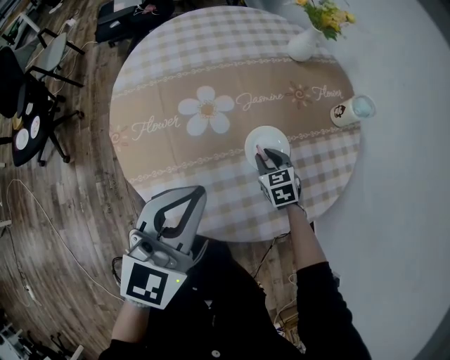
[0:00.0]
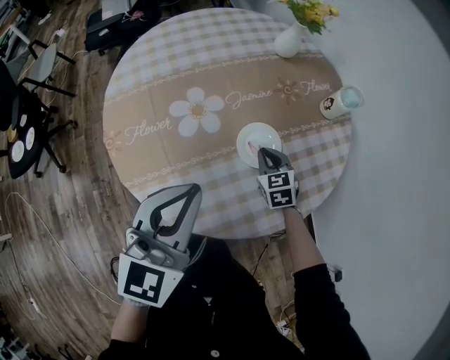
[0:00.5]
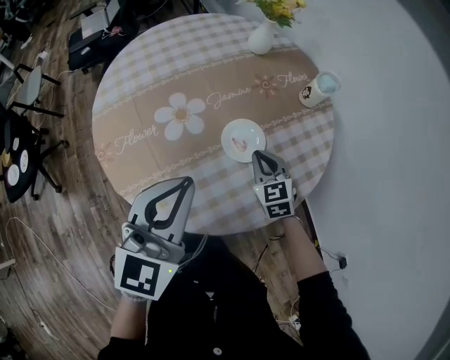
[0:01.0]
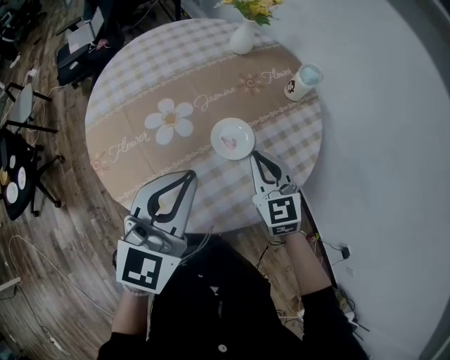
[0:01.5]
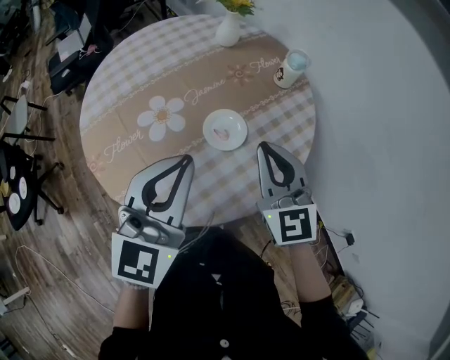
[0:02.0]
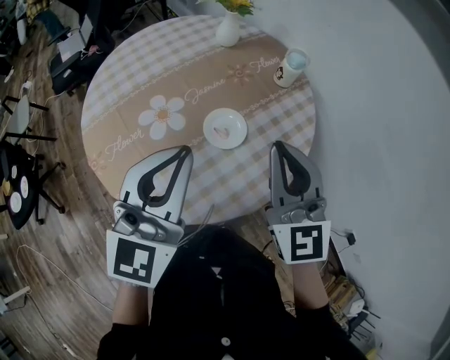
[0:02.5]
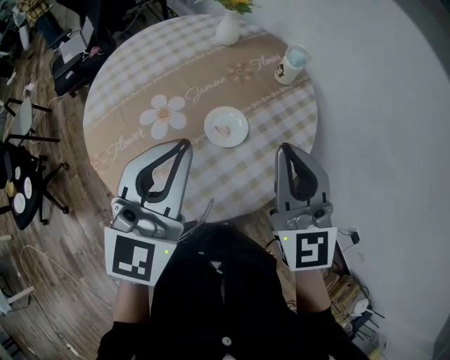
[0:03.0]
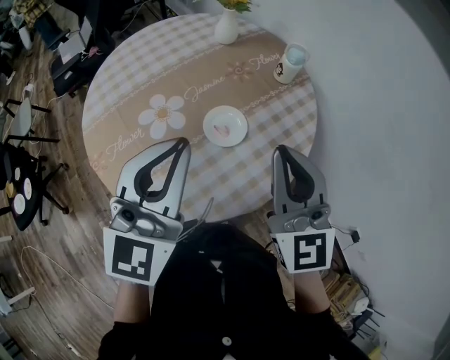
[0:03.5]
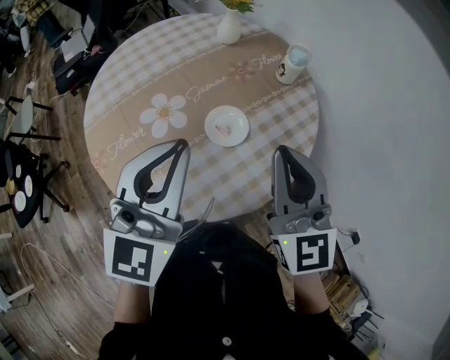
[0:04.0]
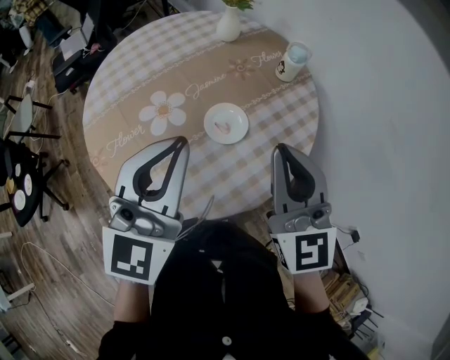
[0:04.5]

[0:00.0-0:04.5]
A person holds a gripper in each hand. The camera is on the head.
0:00.0 to 0:02.0: The left gripper travels upward and to the right by some 10 cm, while the right gripper goes approximately 30 cm upward, and tips its fingers upward by roughly 40 degrees.
0:02.0 to 0:04.5: The right gripper goes approximately 5 cm upward.

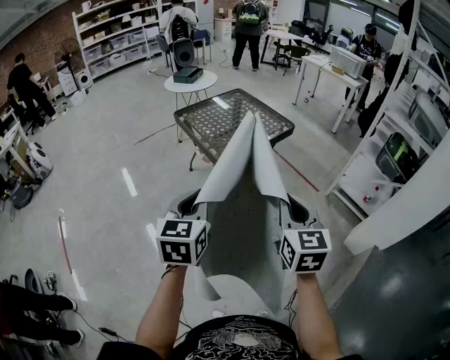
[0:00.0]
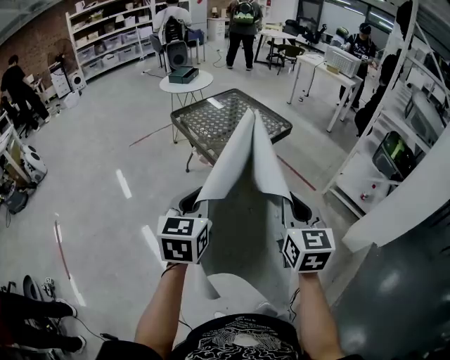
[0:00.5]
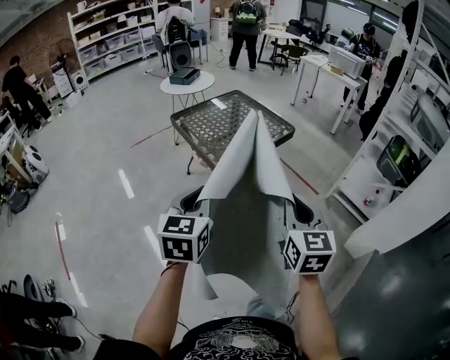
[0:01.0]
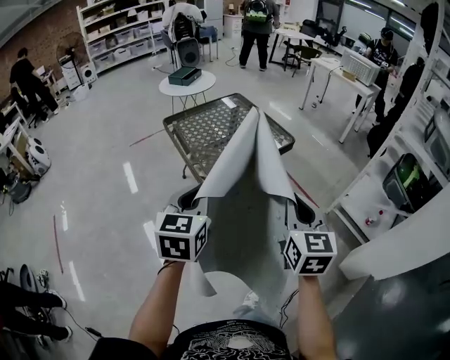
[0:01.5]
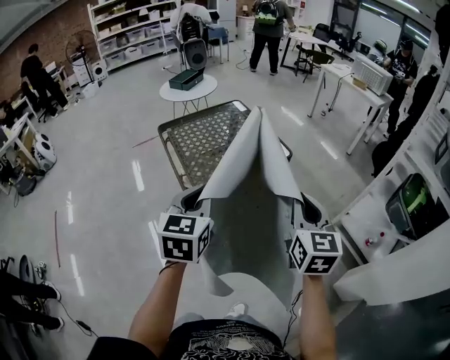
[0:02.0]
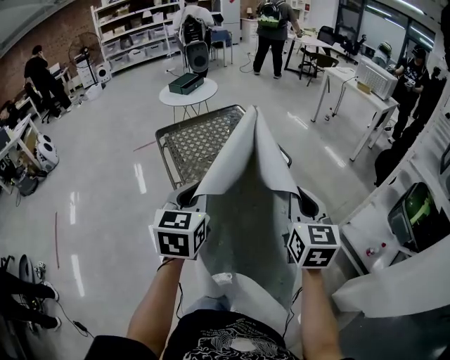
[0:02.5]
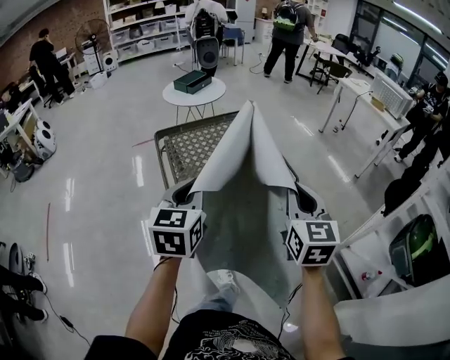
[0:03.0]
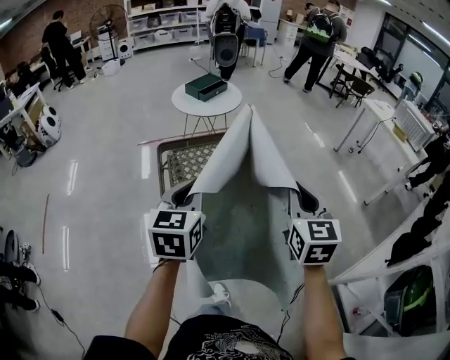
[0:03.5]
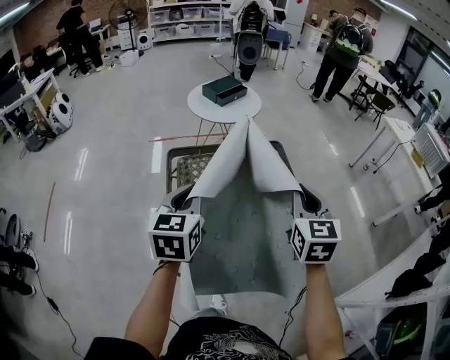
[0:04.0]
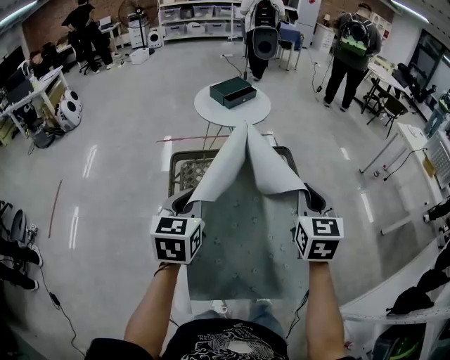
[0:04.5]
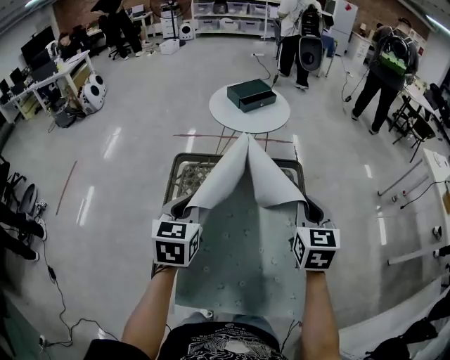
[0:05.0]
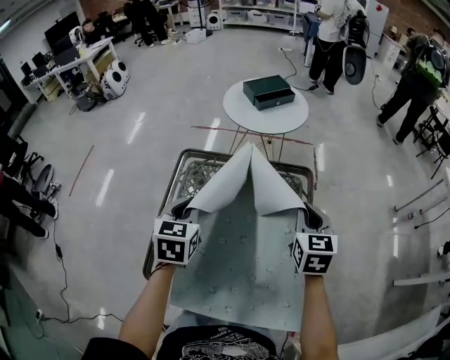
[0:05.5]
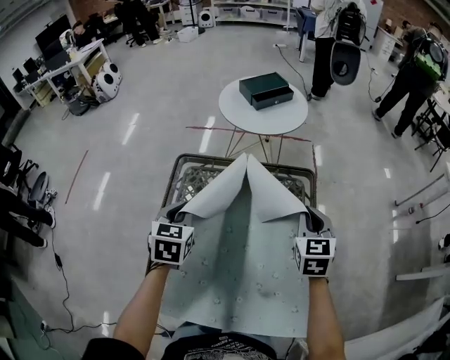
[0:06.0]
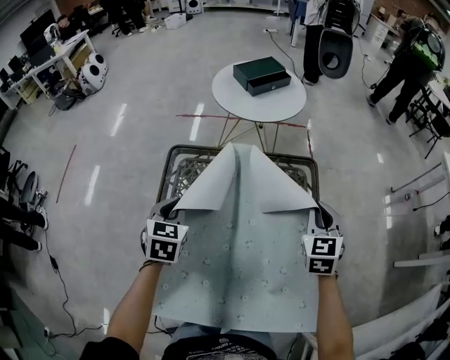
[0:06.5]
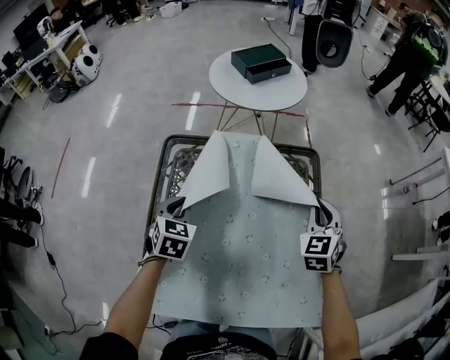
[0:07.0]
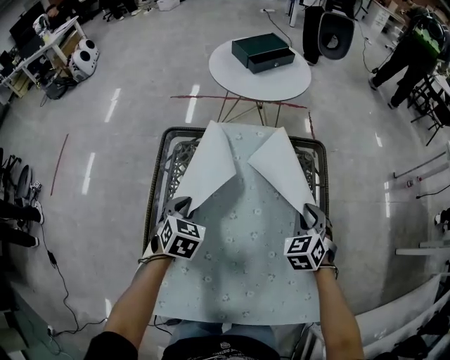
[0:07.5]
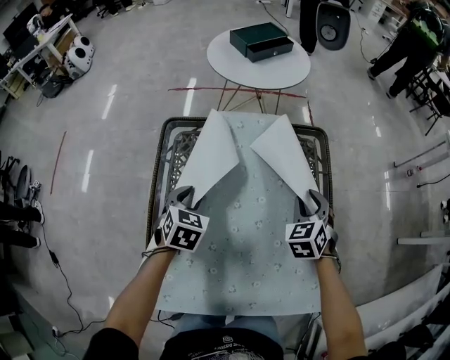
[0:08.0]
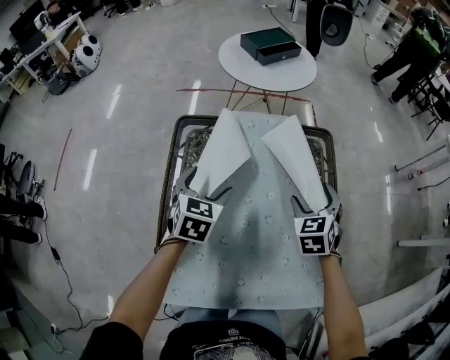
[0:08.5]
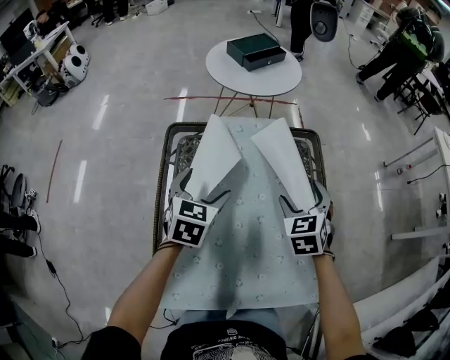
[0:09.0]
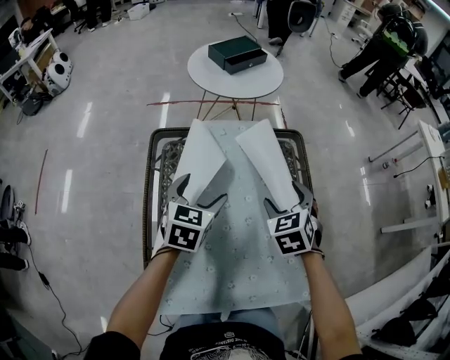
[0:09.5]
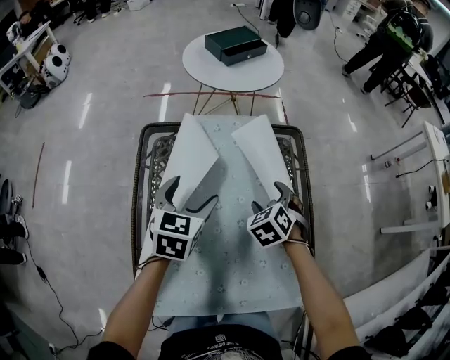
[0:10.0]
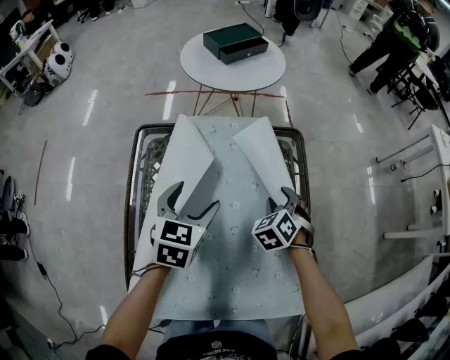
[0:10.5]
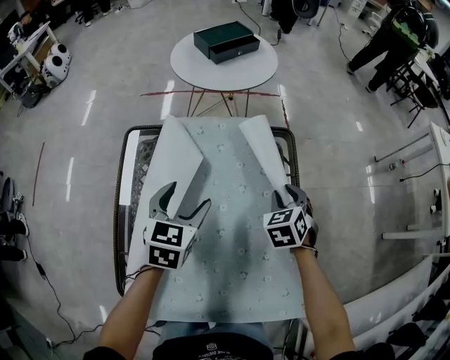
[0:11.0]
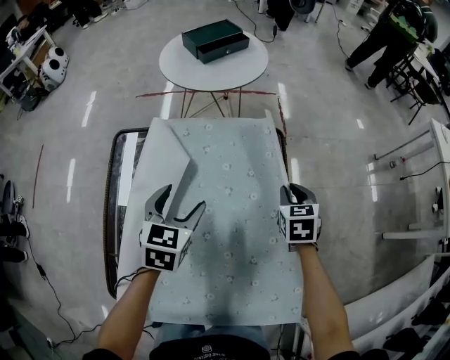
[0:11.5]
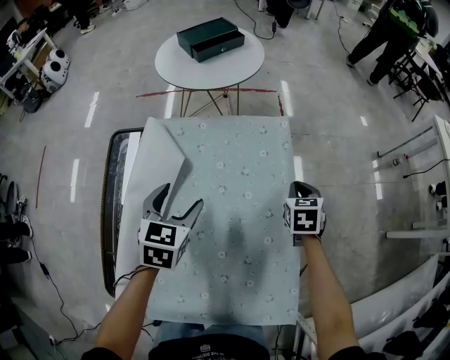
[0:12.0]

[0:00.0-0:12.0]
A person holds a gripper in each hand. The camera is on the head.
0:00.0 to 0:02.0: Both grippers move forward and to the right, some 35 cm.
0:02.0 to 0:04.0: Both grippers are carried forward, roughly 50 cm. The right gripper turns by approximately 20 degrees. The left gripper changes its angle by about 20 degrees.
0:04.0 to 0:06.0: The two grippers go some 25 cm forward and downward. The left gripper rotates approximately 30 degrees.
0:06.0 to 0:08.0: Both grippers move downward, roughly 15 cm. The right gripper changes its angle by approximately 30 degrees.
0:08.0 to 0:10.0: The right gripper travels to the left by roughly 5 cm, moves some 5 cm upward and comes back, and opens its fingers. The left gripper is displaced upward and to the right by approximately 10 cm, and opens.
0:10.0 to 0:12.0: The right gripper moves to the right and forward, about 25 cm, changes its angle by roughly 30 degrees, and closes. Meanwhile the left gripper shifts approximately 10 cm to the right.

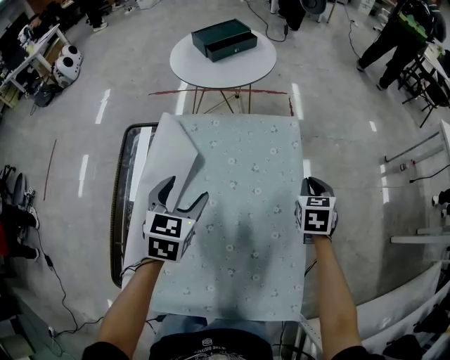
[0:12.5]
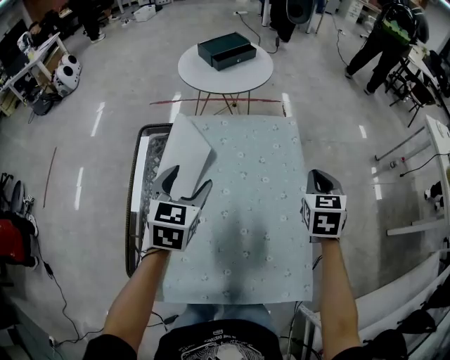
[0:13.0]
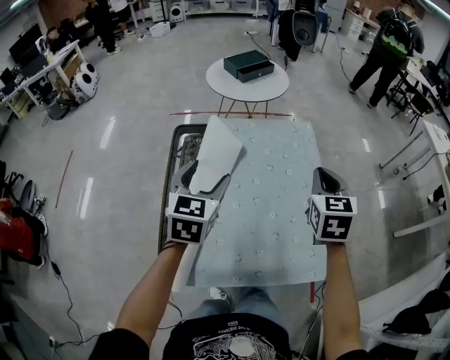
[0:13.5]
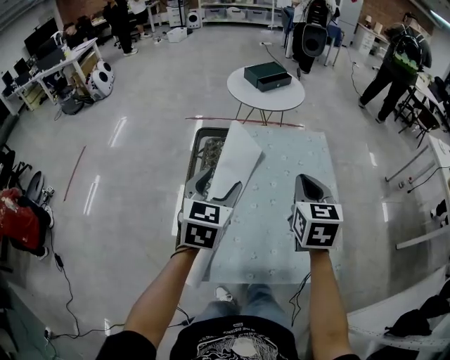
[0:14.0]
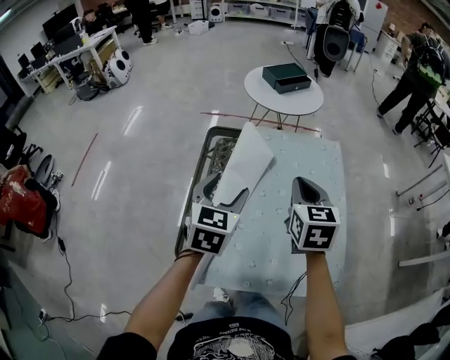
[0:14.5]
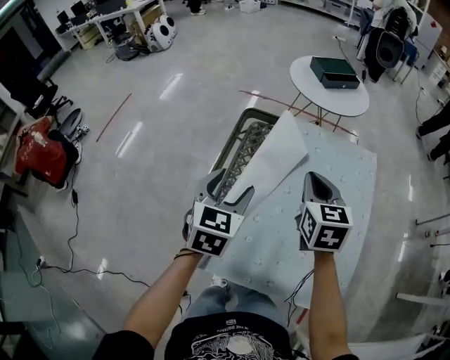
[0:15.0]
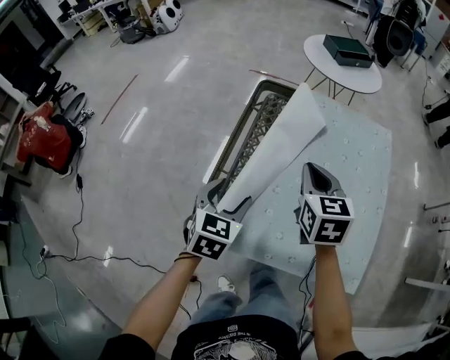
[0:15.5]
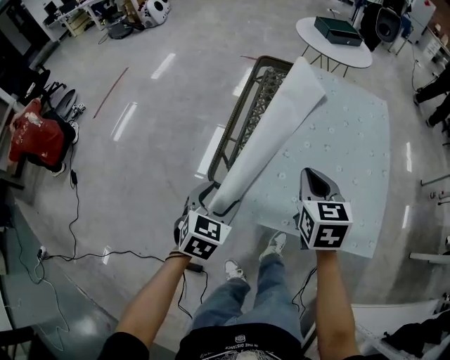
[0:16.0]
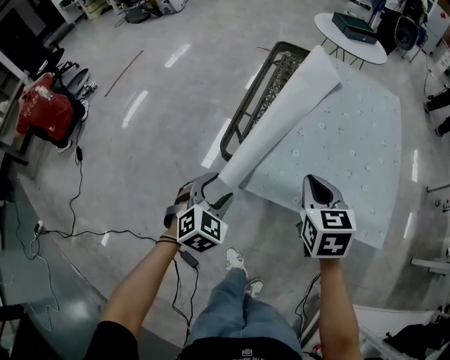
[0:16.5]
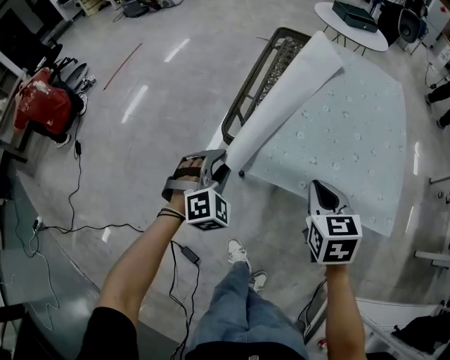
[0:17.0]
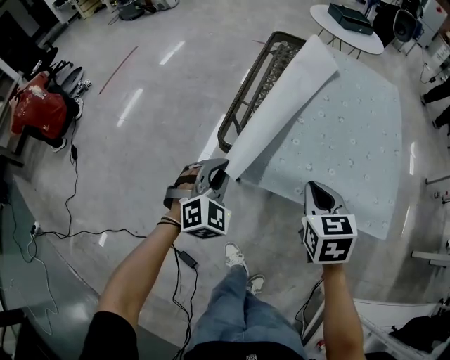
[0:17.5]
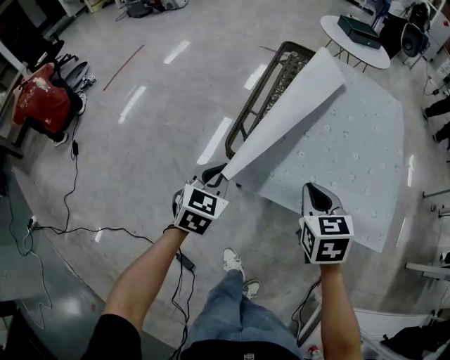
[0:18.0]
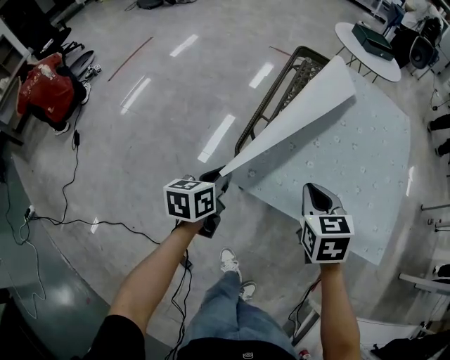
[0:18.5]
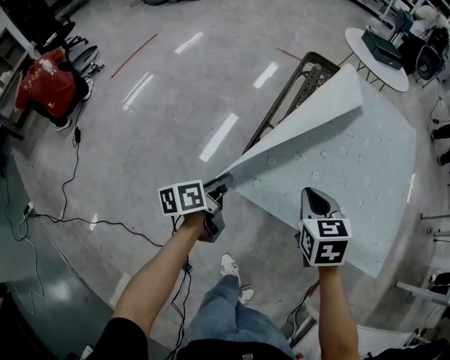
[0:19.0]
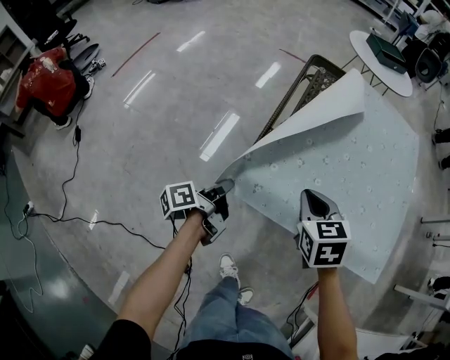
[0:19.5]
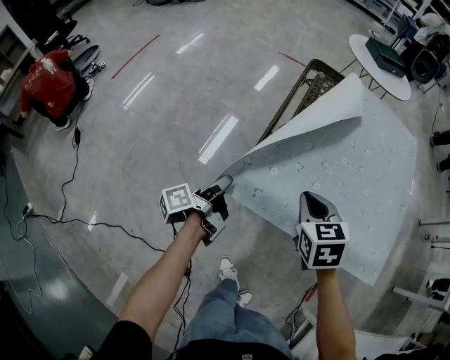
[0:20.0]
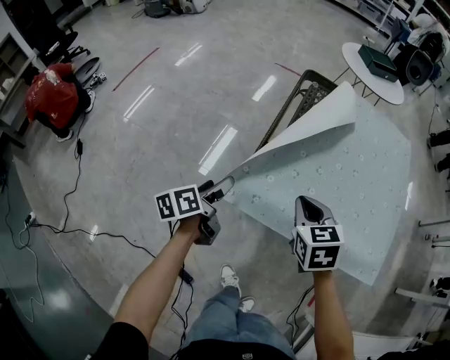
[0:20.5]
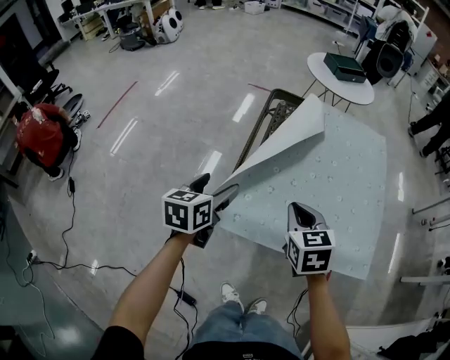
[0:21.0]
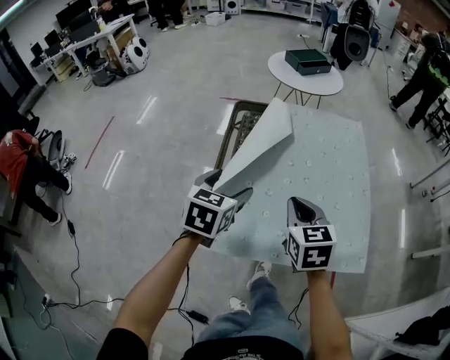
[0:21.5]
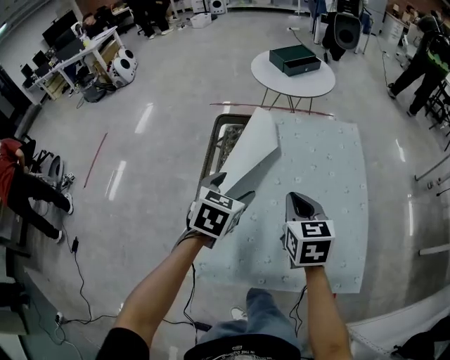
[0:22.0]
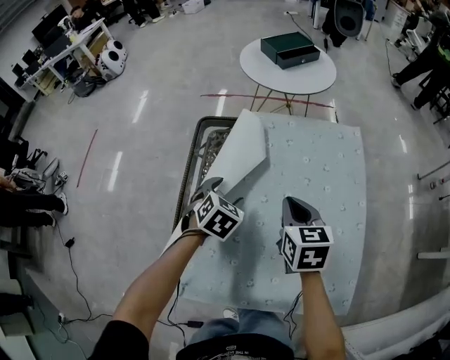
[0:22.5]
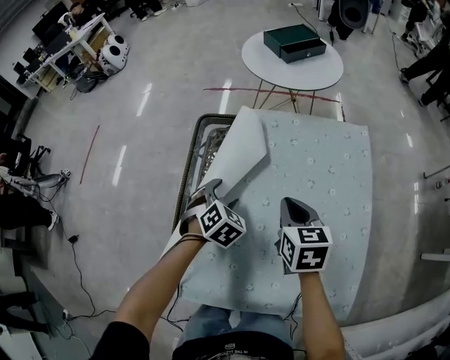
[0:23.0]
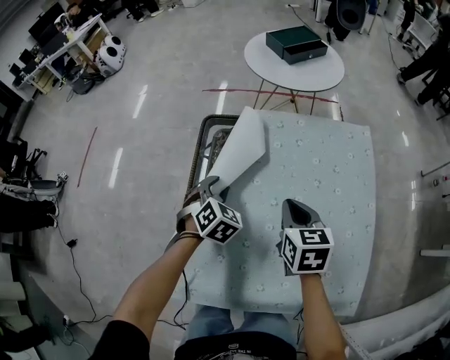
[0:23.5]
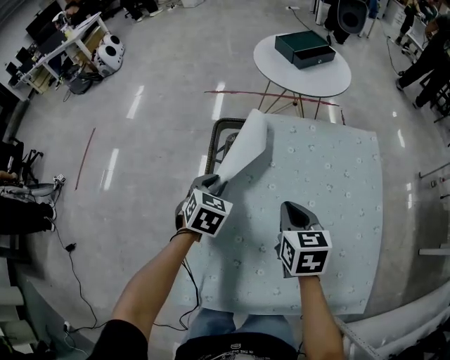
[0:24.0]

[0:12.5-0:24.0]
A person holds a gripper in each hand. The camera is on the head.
0:12.5 to 0:14.5: The left gripper travels backward, upward and to the left by some 25 cm, while the right gripper shifts approximately 40 cm to the left, upward and backward, and changes its angle by approximately 20 degrees.
0:14.5 to 0:16.5: Both grippers travel together backward, downward and to the left, roughly 35 cm. The left gripper changes its angle by approximately 30 degrees. The right gripper rotates roughly 20 degrees.
0:16.5 to 0:18.5: The right gripper shifts by roughly 5 cm. The left gripper heads forward and to the left, covering about 10 cm, twists about 60 degrees counterclockwise, seen from behind, and closes up.
0:18.5 to 0:20.0: The left gripper moves about 5 cm, and rotates around the line of its fingers by about 60 degrees, counterclockwise from behind; the right gripper shifts by some 5 cm.
0:20.0 to 0:22.0: Both grippers travel together forward, to the right and upward, roughly 30 cm. The left gripper twists some 100 degrees clockwise, seen from behind, and opens; the right gripper rotates some 30 degrees.
0:22.0 to 0:24.0: The left gripper heads forward, downward and to the left, covering roughly 20 cm, and closes up. Meanwhile the right gripper moves forward and downward, about 10 cm.
